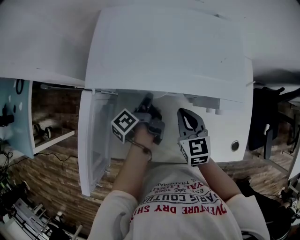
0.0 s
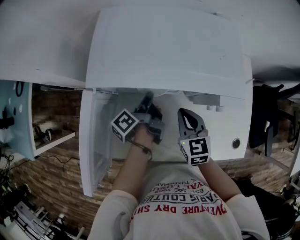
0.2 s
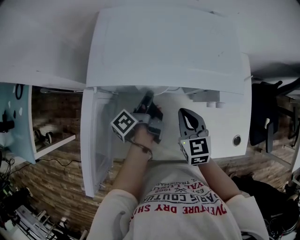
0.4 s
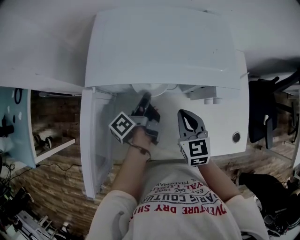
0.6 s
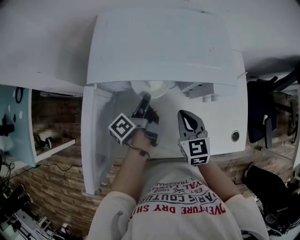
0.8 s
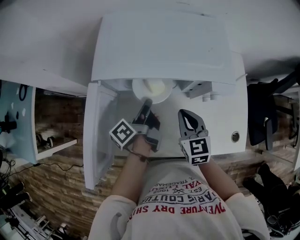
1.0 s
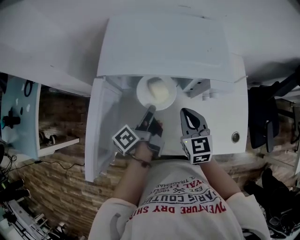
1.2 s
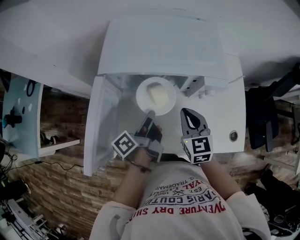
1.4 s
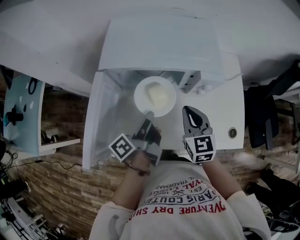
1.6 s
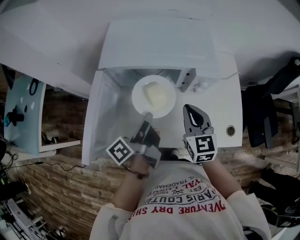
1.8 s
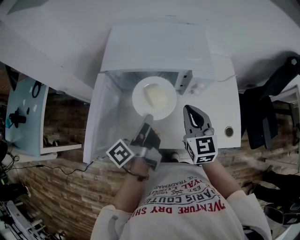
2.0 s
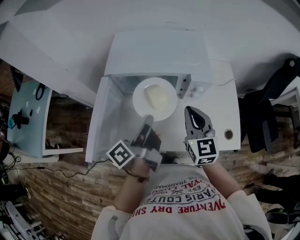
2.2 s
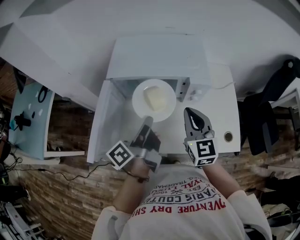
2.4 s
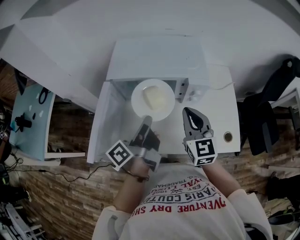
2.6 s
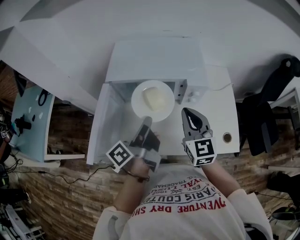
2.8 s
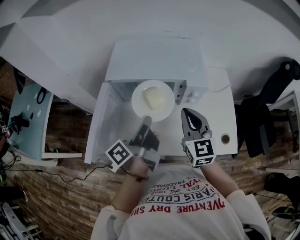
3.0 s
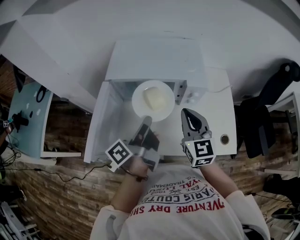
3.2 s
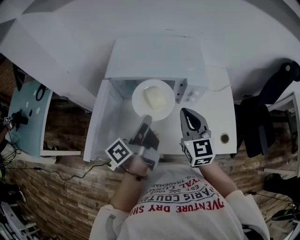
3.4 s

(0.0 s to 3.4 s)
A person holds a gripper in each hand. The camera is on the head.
0.0 s - 1.6 s: The left gripper shifts roughly 20 cm backward and upward, while the right gripper travels upward and backward by about 10 cm.
1.6 s - 3.4 s: The grippers both shift upward by some 10 cm.

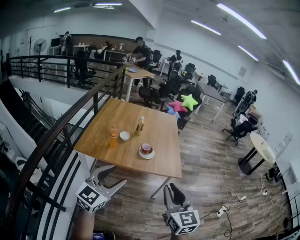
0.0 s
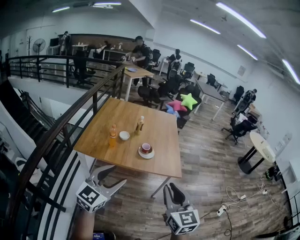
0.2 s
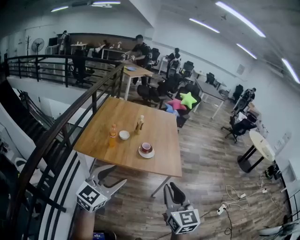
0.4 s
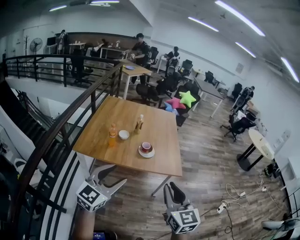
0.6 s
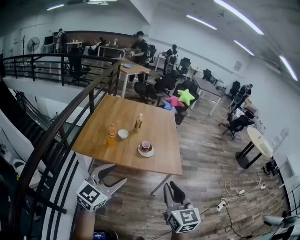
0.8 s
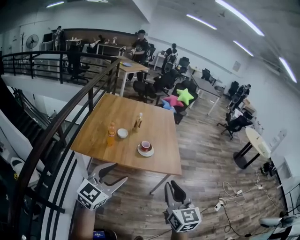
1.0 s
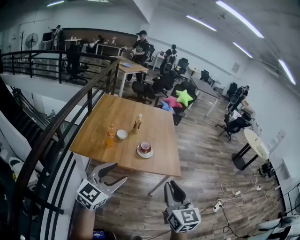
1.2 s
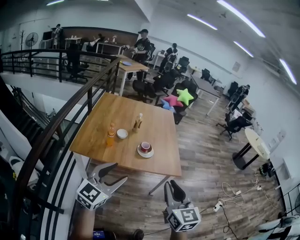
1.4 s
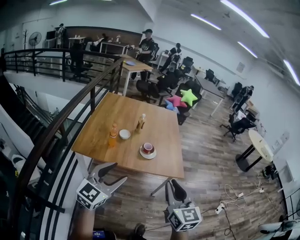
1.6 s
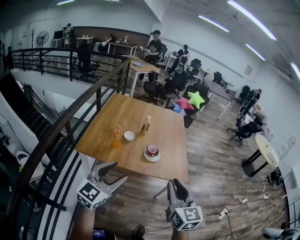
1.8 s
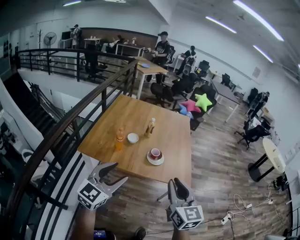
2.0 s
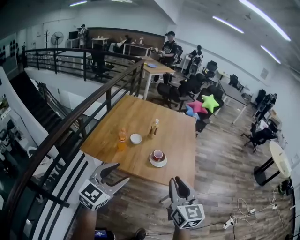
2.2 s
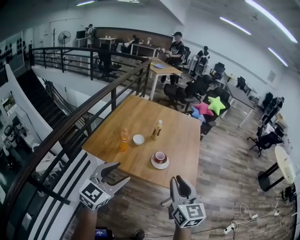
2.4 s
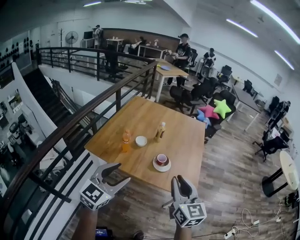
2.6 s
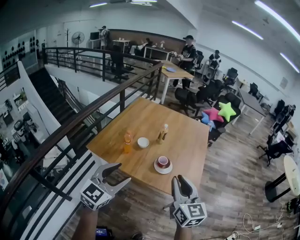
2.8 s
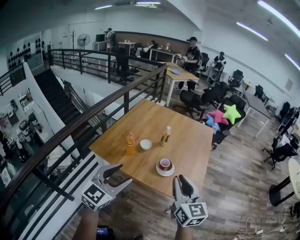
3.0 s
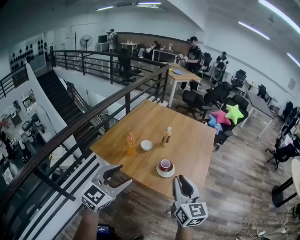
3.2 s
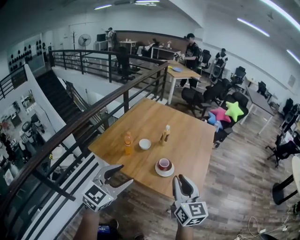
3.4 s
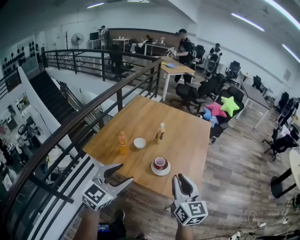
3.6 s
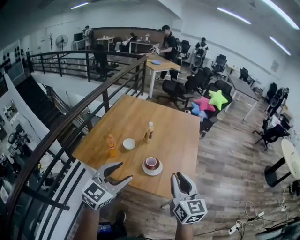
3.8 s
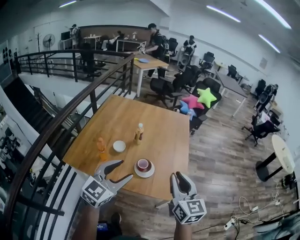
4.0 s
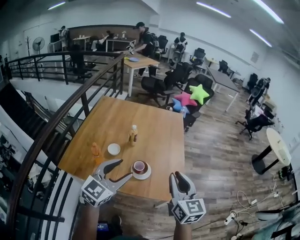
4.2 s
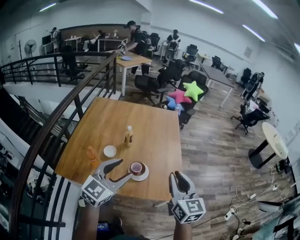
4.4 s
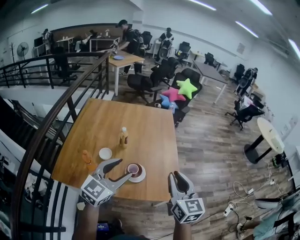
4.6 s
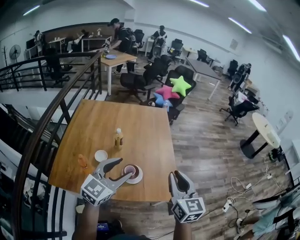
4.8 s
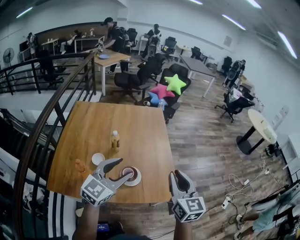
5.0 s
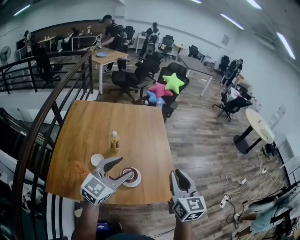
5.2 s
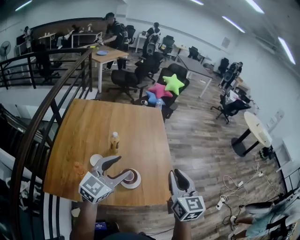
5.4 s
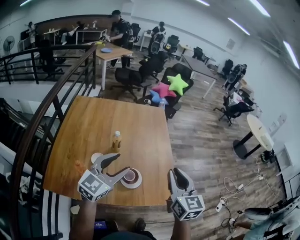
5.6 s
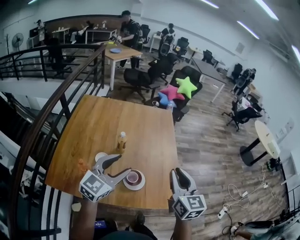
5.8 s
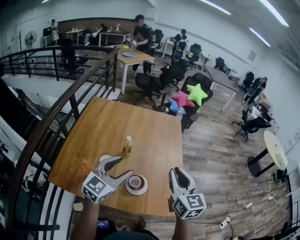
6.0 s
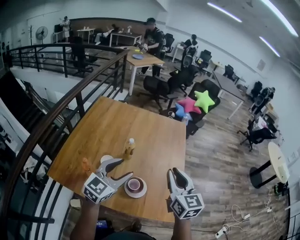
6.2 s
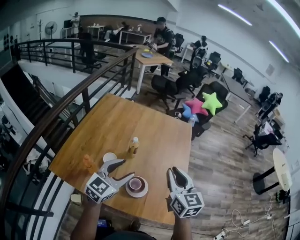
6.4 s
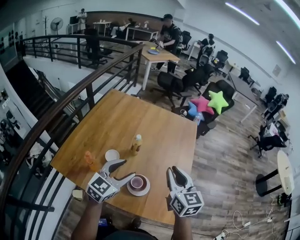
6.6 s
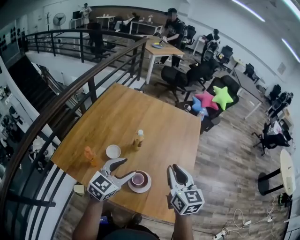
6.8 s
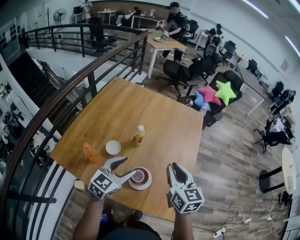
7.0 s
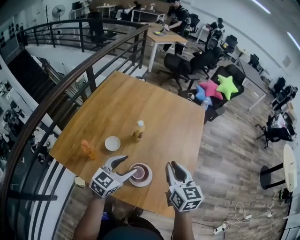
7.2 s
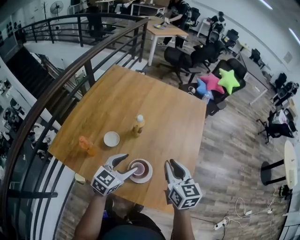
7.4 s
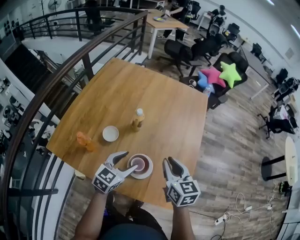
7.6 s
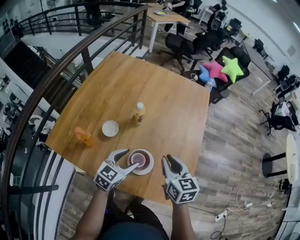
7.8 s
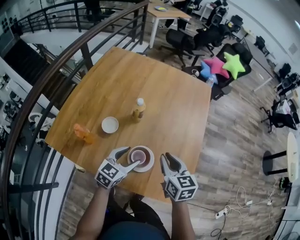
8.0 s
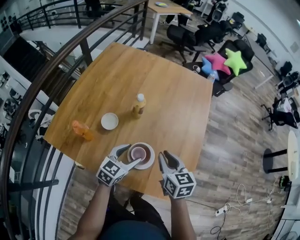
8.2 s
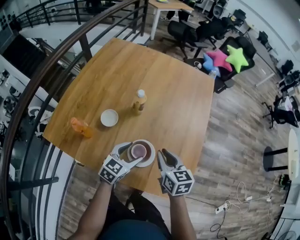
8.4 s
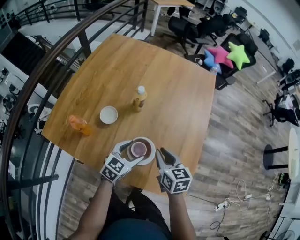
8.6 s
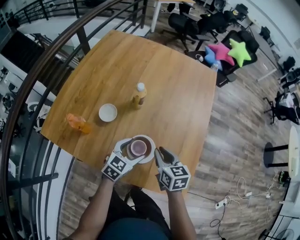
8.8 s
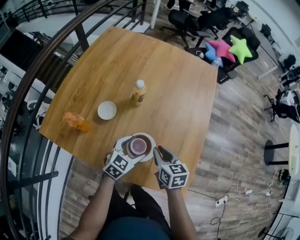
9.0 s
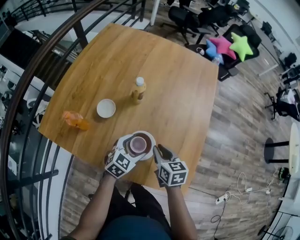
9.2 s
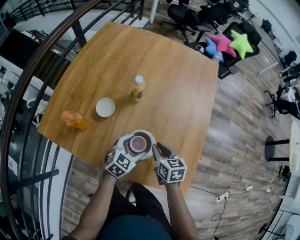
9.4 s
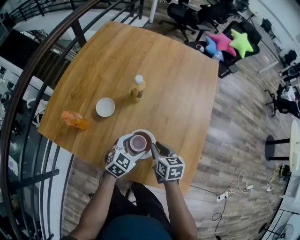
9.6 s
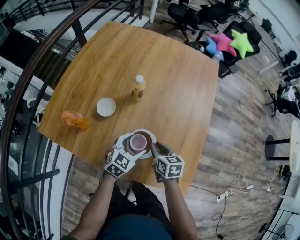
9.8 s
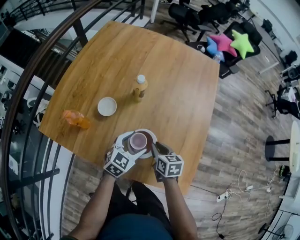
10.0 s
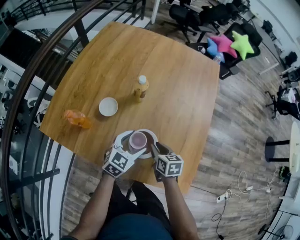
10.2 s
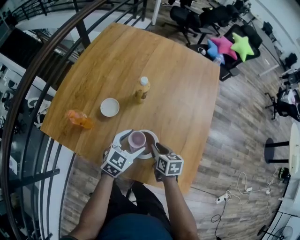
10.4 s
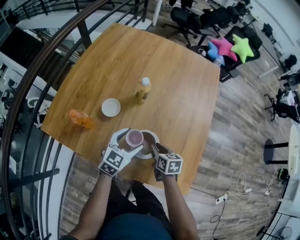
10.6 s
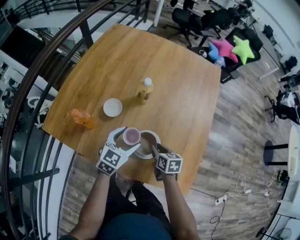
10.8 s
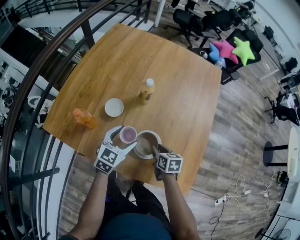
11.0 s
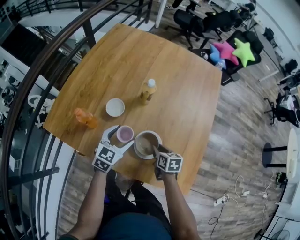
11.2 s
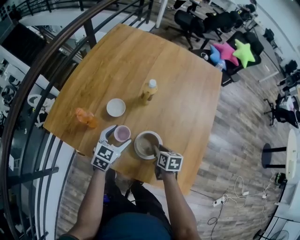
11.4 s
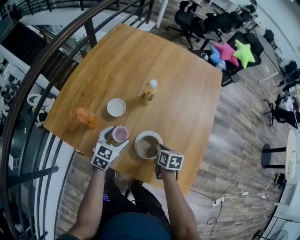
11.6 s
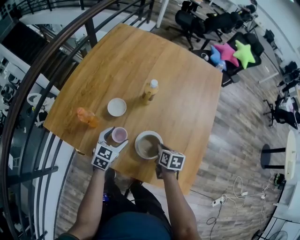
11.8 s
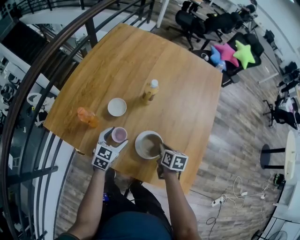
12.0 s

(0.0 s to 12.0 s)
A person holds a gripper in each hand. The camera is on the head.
0.0 s - 1.6 s: The two grippers go approximately 5 cm forward.
1.6 s - 3.0 s: The right gripper shifts roughly 20 cm forward and to the right, and rotates approximately 20 degrees; the left gripper is displaced forward and to the right by approximately 15 cm, and changes its angle by approximately 20 degrees.
3.0 s - 4.4 s: The left gripper shifts approximately 20 cm forward and to the right, and swivels about 20 degrees. The right gripper travels forward and to the right by some 15 cm, and rotates some 20 degrees.
4.4 s - 6.0 s: The right gripper is displaced forward by approximately 15 cm; the left gripper travels forward and to the left by some 15 cm.
6.0 s - 7.6 s: The right gripper travels downward and forward by some 15 cm, and rotates roughly 20 degrees. The left gripper moves downward, some 20 cm, and swivels approximately 20 degrees.
7.6 s - 9.0 s: Both grippers move downward, approximately 15 cm.
9.0 s - 10.4 s: The right gripper heads downward, covering roughly 10 cm.
10.4 s - 12.0 s: The left gripper travels to the left by approximately 10 cm.

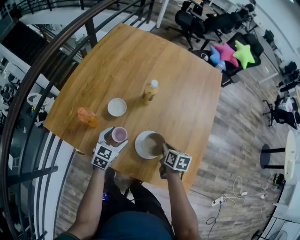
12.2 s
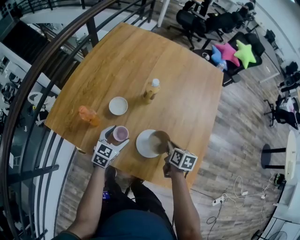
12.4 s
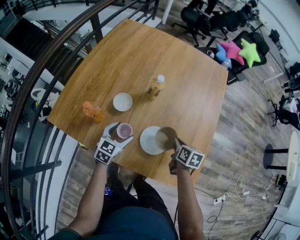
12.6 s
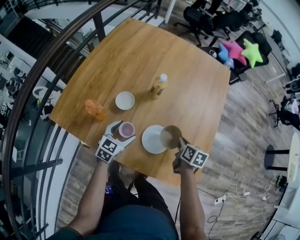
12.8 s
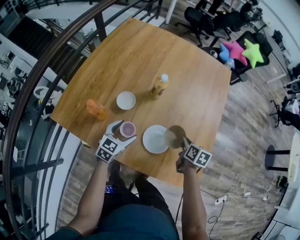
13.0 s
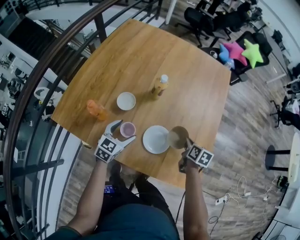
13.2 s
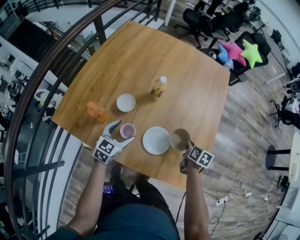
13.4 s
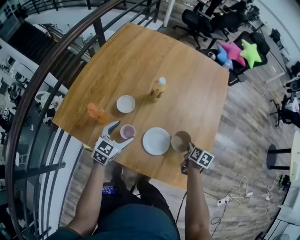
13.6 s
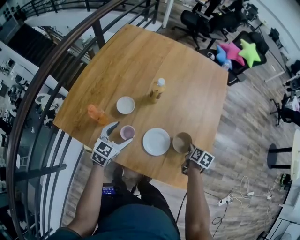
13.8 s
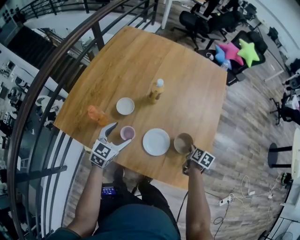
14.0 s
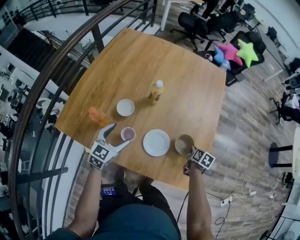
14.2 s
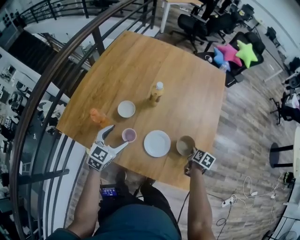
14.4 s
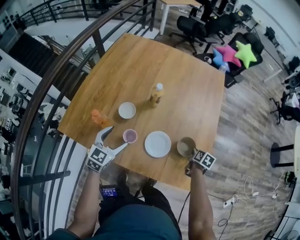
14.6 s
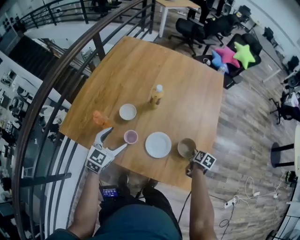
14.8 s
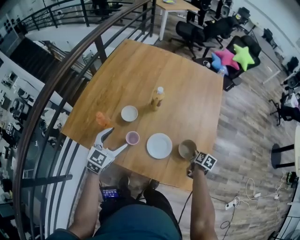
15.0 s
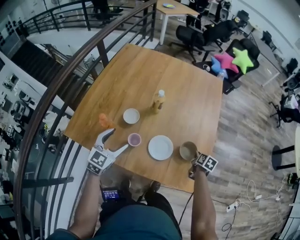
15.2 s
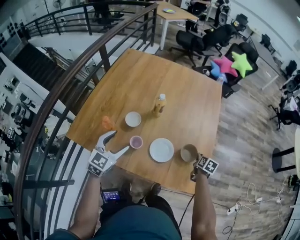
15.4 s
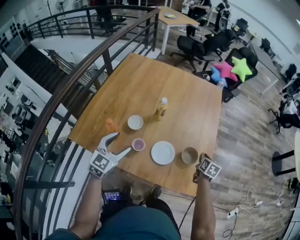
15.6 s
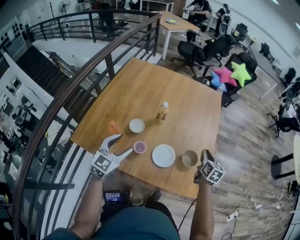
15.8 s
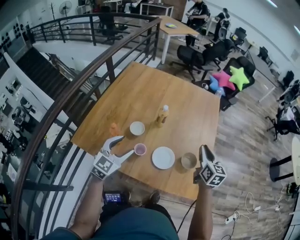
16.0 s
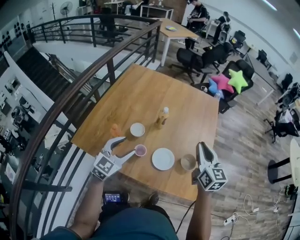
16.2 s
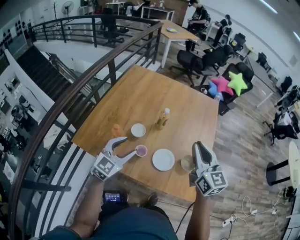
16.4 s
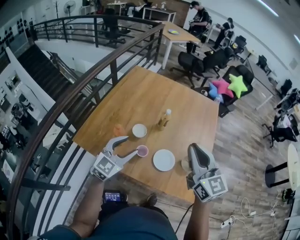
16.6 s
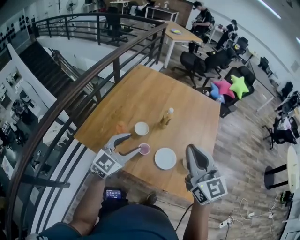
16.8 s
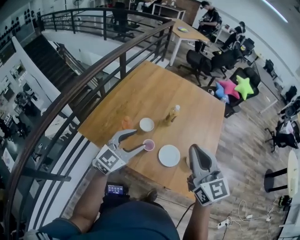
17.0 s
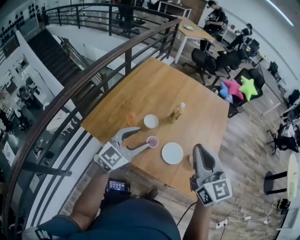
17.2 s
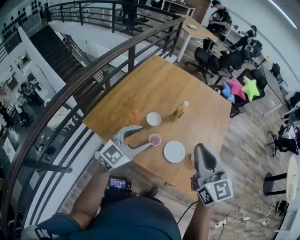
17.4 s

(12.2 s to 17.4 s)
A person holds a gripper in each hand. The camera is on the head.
12.2 s - 14.0 s: The right gripper travels to the right by some 15 cm. Meanwhile the left gripper goes about 5 cm upward.
14.0 s - 15.6 s: The grippers both shift upward by roughly 10 cm.
15.6 s - 17.4 s: The right gripper heads upward, to the left and backward, covering about 50 cm, and points its fingers some 40 degrees further upward. The left gripper travels upward and backward by roughly 10 cm.

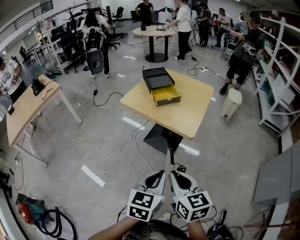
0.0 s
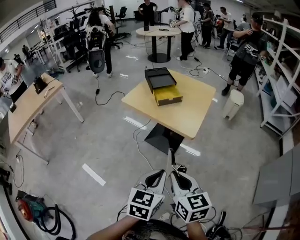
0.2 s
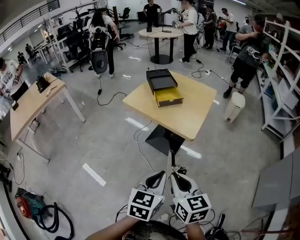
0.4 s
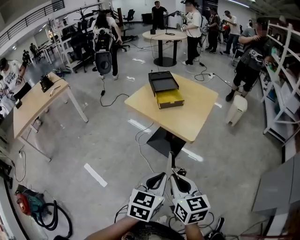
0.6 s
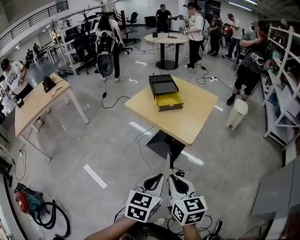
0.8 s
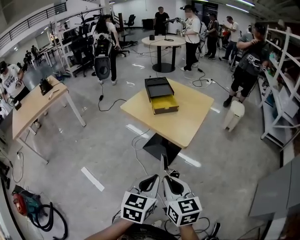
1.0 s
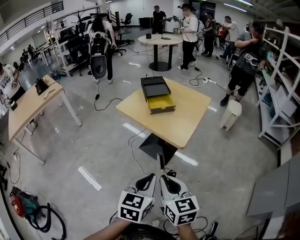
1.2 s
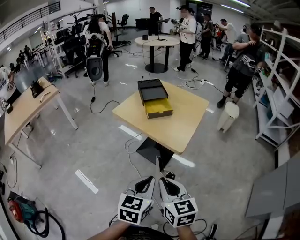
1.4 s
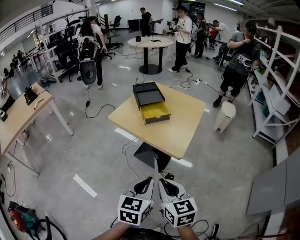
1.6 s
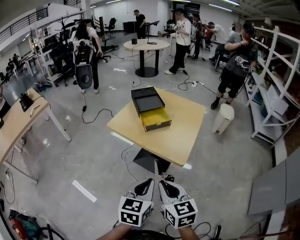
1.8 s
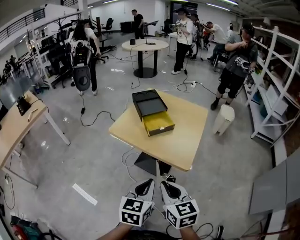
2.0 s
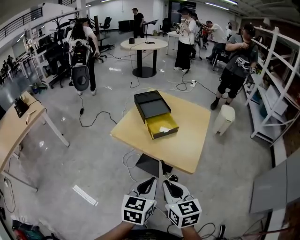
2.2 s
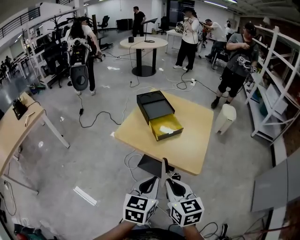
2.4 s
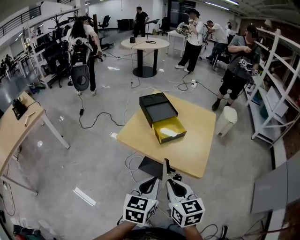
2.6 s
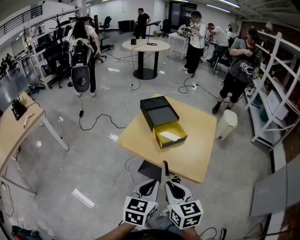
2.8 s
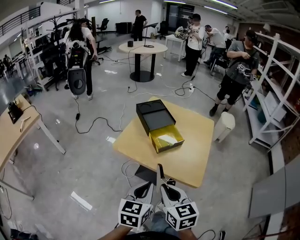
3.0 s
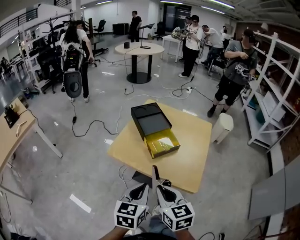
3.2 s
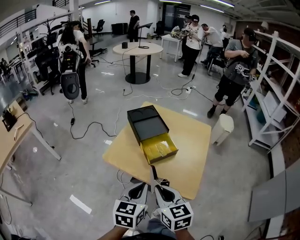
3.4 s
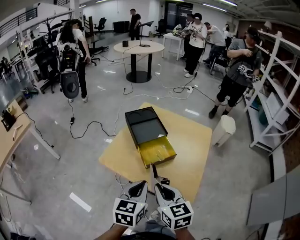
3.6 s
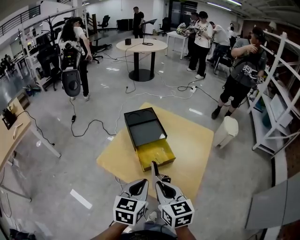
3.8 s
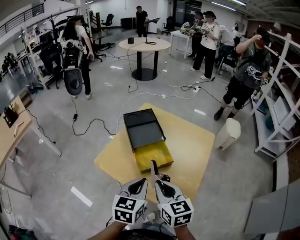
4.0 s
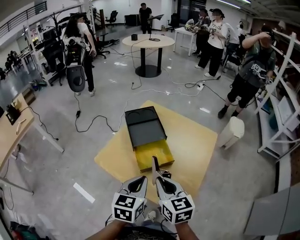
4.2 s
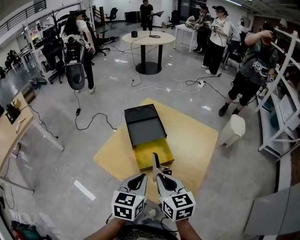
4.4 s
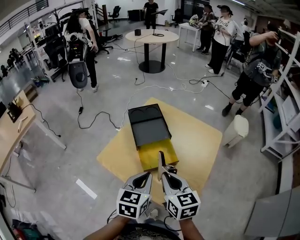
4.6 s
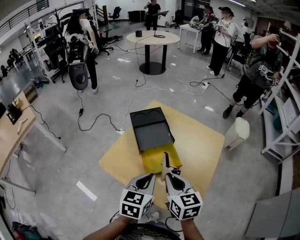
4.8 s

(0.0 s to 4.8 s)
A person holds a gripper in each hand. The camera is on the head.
0.0 s - 1.6 s: The pair of grippers is taken forward and to the right, approximately 40 cm.
1.6 s - 3.2 s: The two grippers travel together, forward and to the left, some 1.5 m.
3.2 s - 4.8 s: The pair of grippers is taken forward and to the right, roughly 1.5 m.
